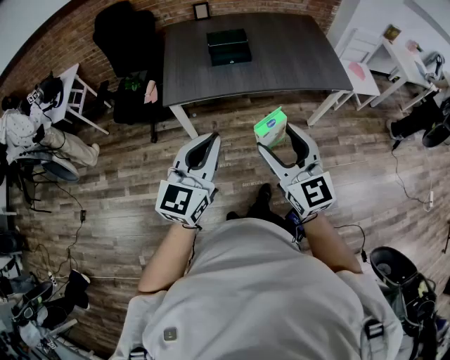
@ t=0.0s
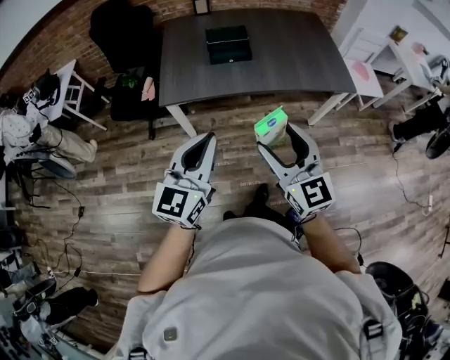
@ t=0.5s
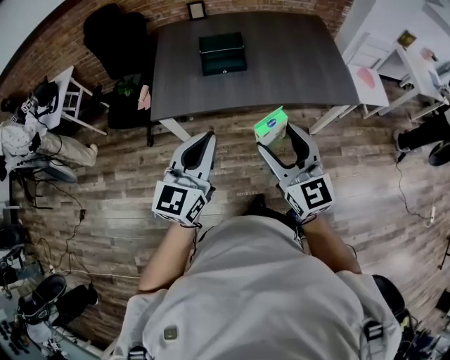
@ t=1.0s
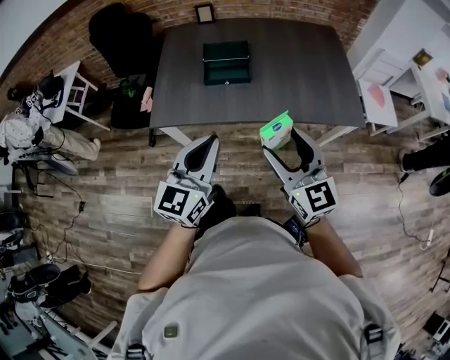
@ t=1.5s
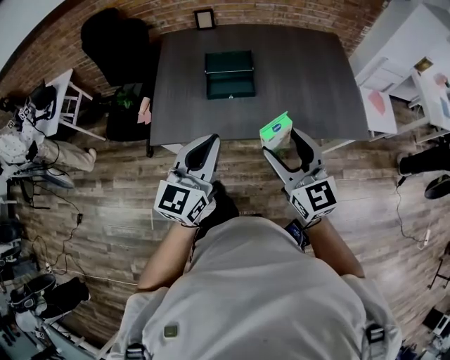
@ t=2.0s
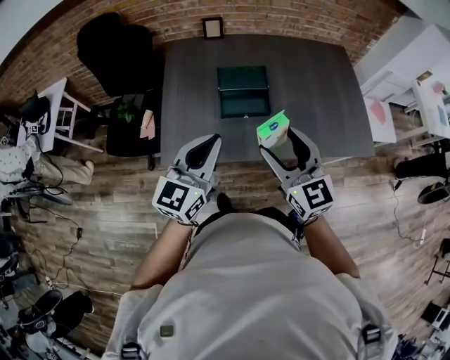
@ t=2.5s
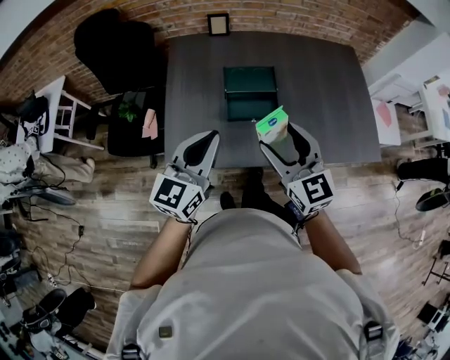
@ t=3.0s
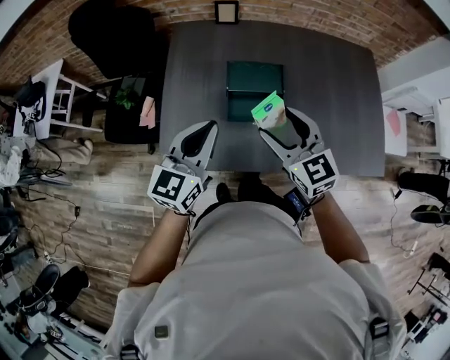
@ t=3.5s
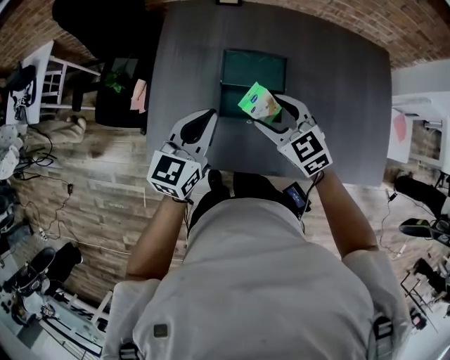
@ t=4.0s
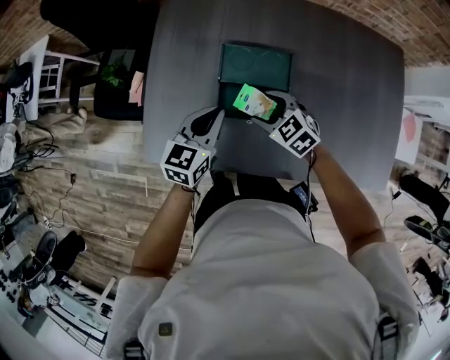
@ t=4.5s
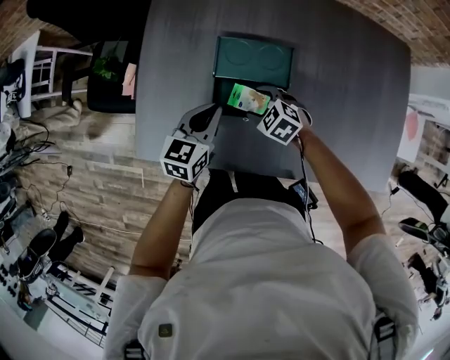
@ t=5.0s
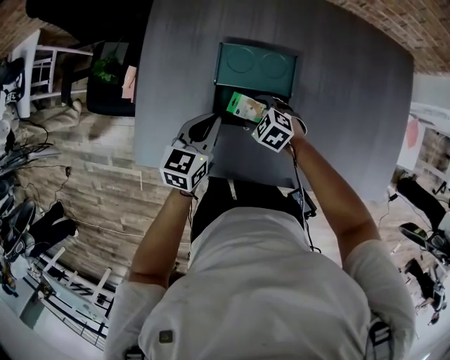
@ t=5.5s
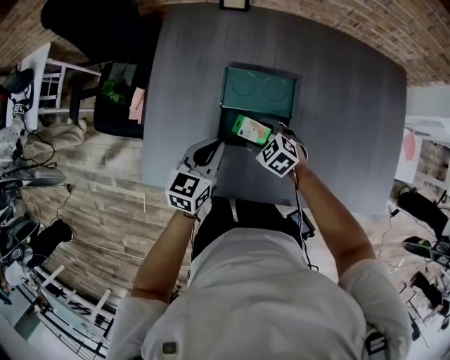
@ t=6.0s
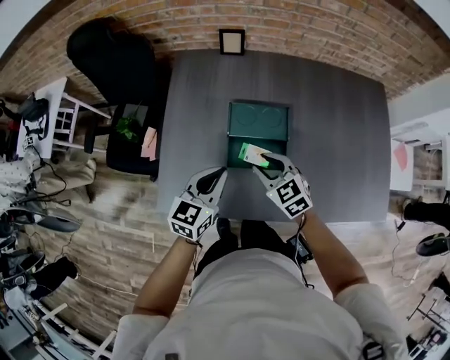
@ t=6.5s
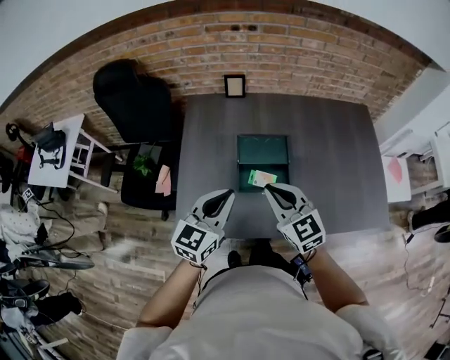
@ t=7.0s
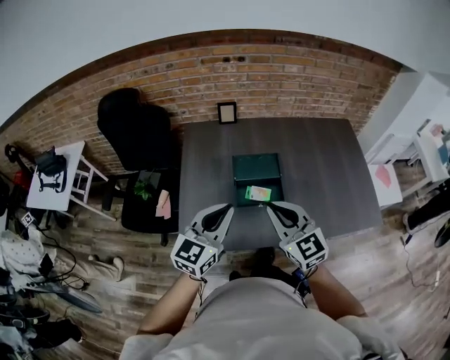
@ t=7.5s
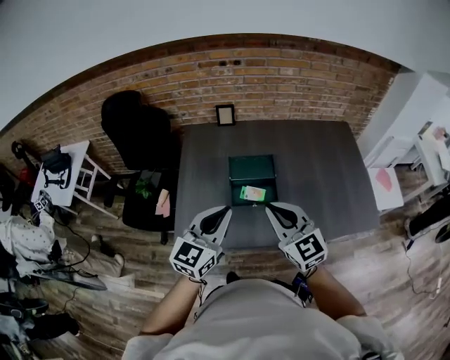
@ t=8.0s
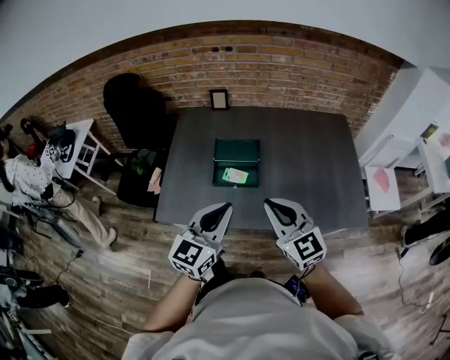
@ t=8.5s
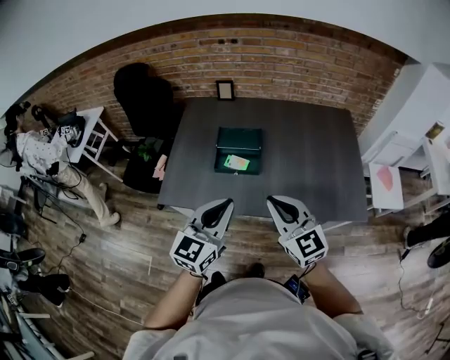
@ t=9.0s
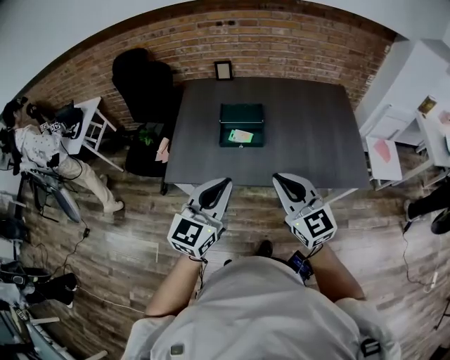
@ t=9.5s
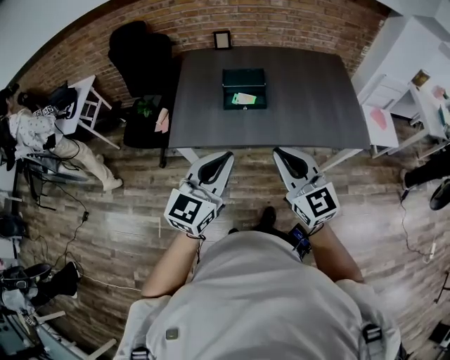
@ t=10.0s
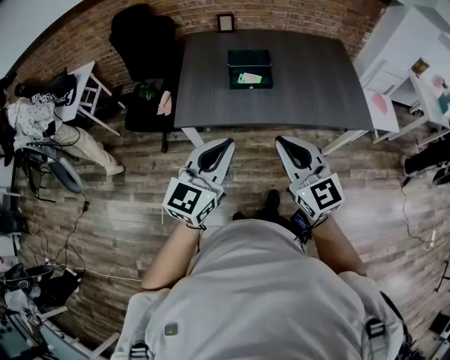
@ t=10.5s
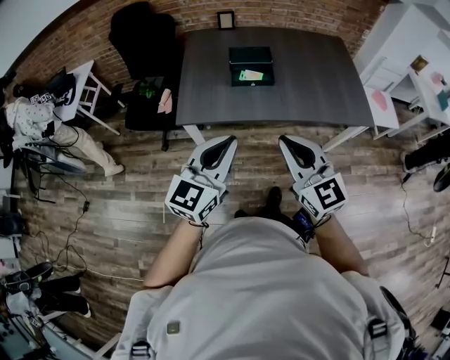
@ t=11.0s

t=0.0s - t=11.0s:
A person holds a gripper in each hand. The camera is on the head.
t=0.0s - t=2.0s: The two grippers go roughly 35 cm forward.
t=2.0s - t=3.5s: The right gripper travels forward by roughly 30 cm, while the left gripper travels forward and to the left by approximately 30 cm.
t=3.5s - t=5.5s: The left gripper moves downward and forward, about 25 cm, and swivels approximately 30 degrees. The right gripper goes about 35 cm downward, and angles its fingers downward, by some 40 degrees.
t=5.5s - t=7.5s: The two grippers go approximately 35 cm upward. The left gripper changes its angle by approximately 30 degrees, while the right gripper tilts its fingers approximately 50 degrees upward, and closes.
t=7.5s - t=9.0s: The two grippers go roughly 25 cm to the right and backward.
t=9.0s - t=11.0s: The two grippers go some 30 cm backward and to the left.

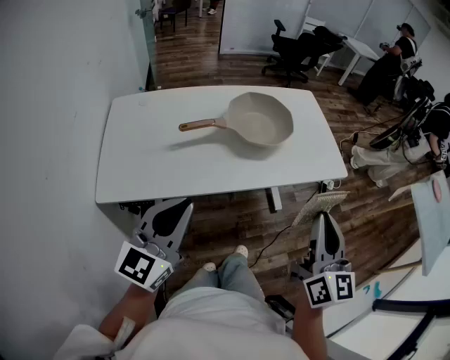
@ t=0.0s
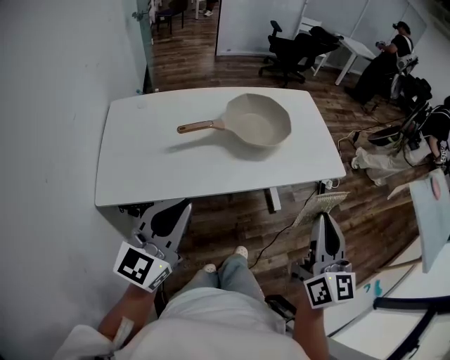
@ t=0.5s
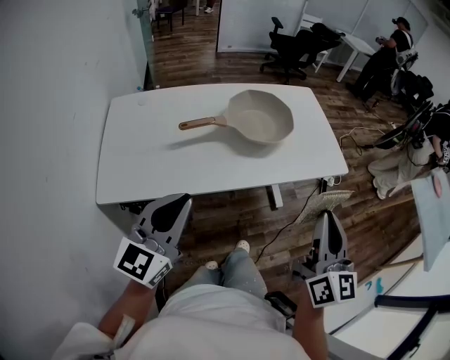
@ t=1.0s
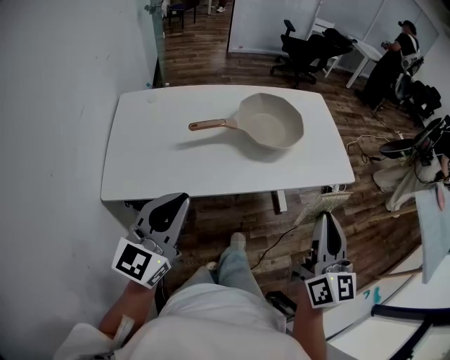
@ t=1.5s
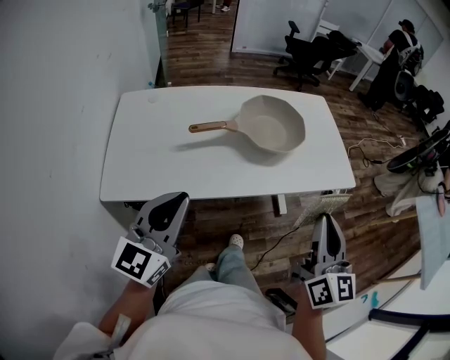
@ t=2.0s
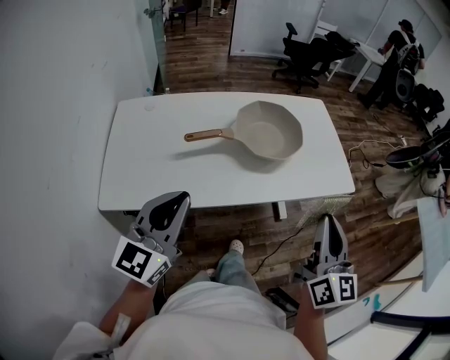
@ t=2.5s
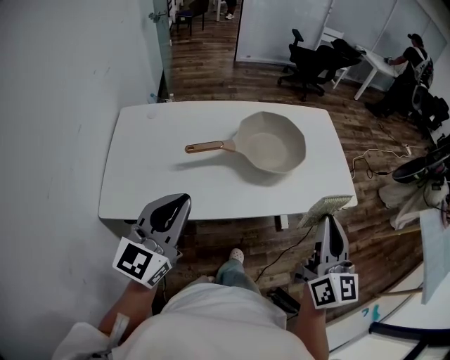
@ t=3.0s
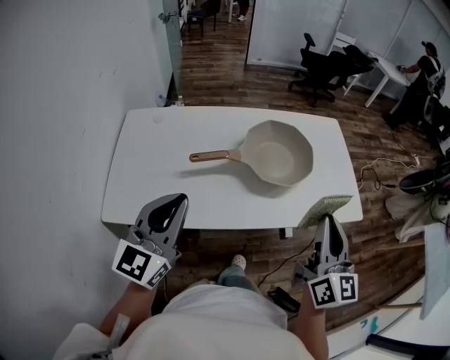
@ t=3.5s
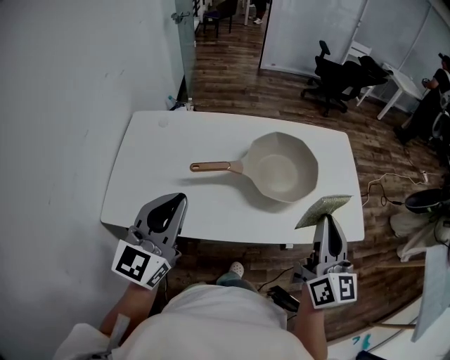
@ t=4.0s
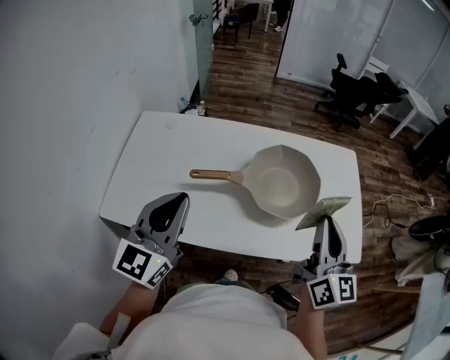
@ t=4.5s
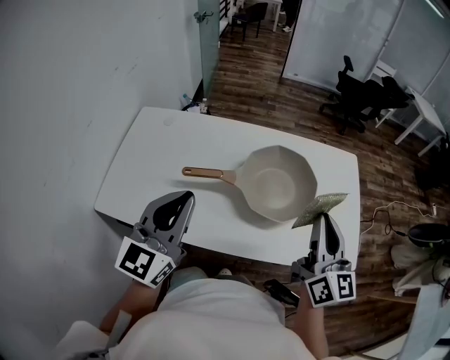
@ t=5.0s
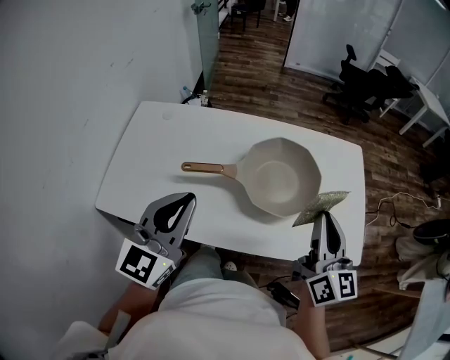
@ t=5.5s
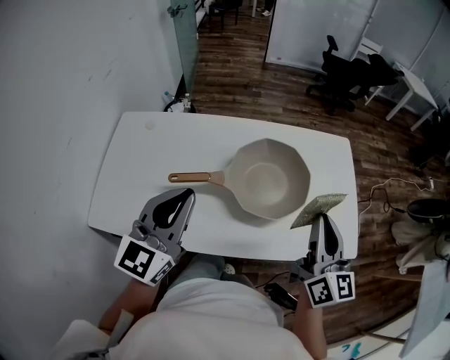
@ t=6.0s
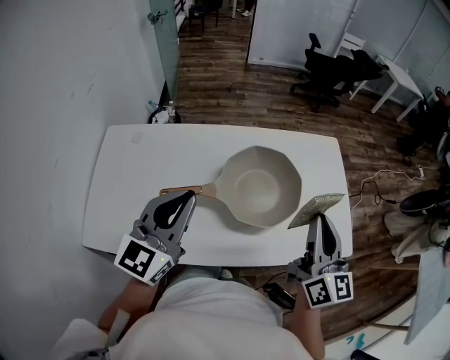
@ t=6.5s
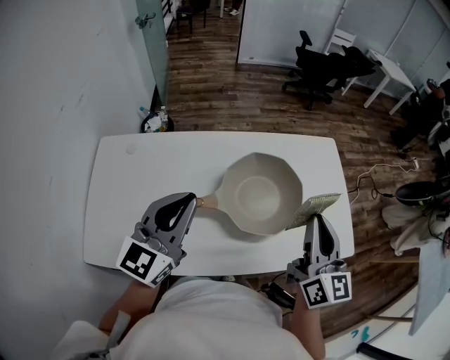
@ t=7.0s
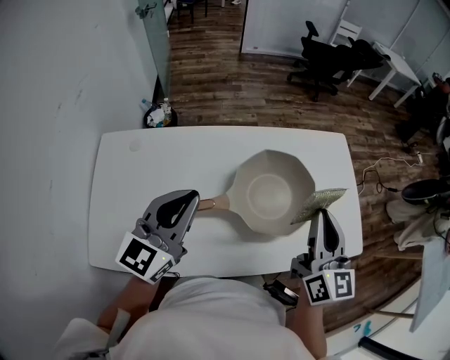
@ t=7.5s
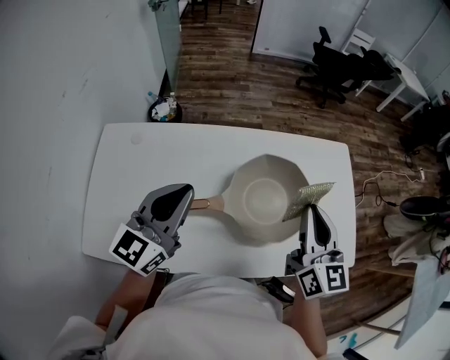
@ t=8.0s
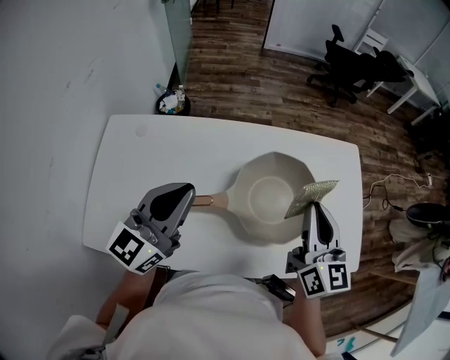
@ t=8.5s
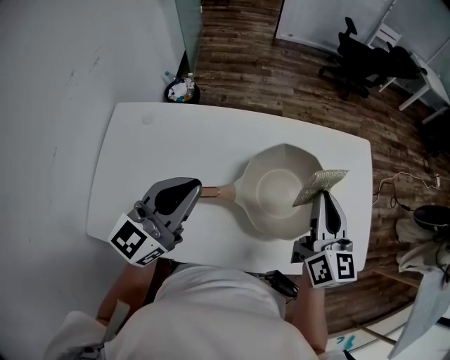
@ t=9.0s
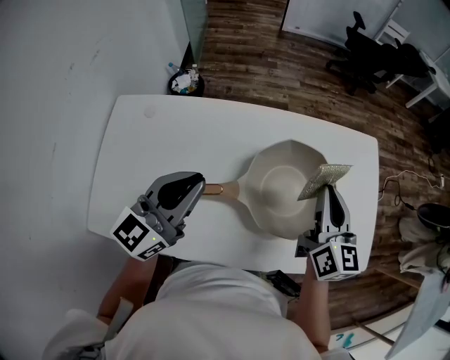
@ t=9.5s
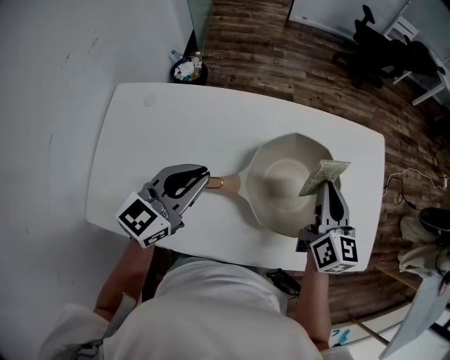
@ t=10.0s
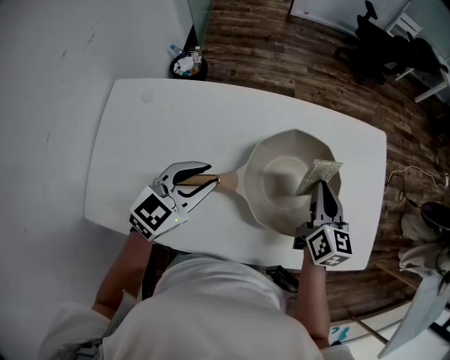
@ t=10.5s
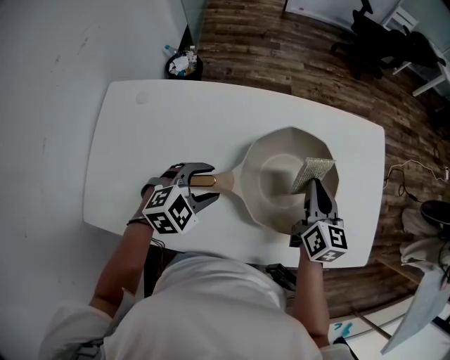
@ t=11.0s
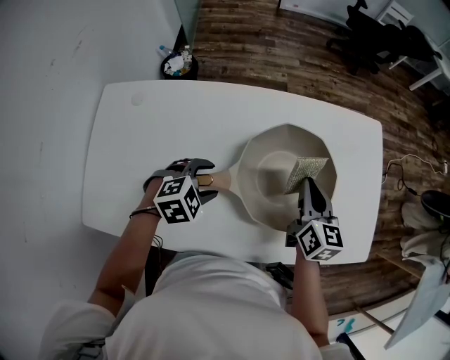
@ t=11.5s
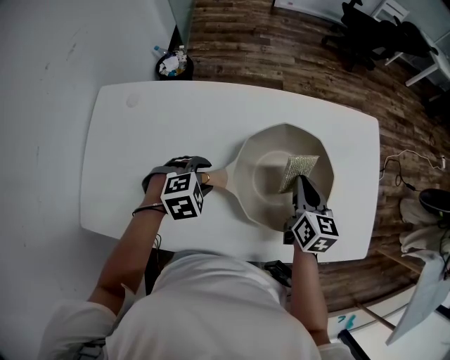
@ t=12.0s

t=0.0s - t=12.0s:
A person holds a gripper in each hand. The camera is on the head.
t=0.0s - t=2.0s: There are only small adjustments of the grippers.
t=2.0s - t=4.0s: Both grippers travel together forward, about 15 cm.
t=4.0s - t=6.0s: The grippers both shift forward and to the right by approximately 10 cm.
t=6.0s - t=8.0s: The grippers both shift forward and to the left by roughly 15 cm.
t=8.0s - t=10.0s: The right gripper shifts some 15 cm downward and forward. The left gripper is displaced downward by roughly 10 cm.
t=10.0s - t=12.0s: The left gripper is displaced downward by some 20 cm, tilts its fingers roughly 50 degrees downward, and opens up. The right gripper is displaced downward by about 10 cm.

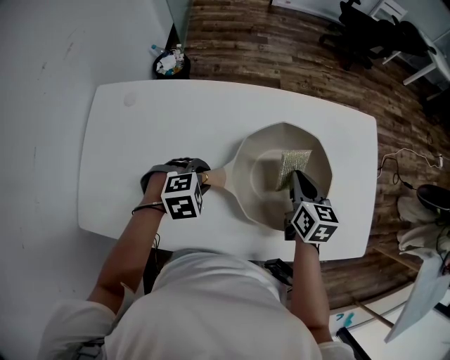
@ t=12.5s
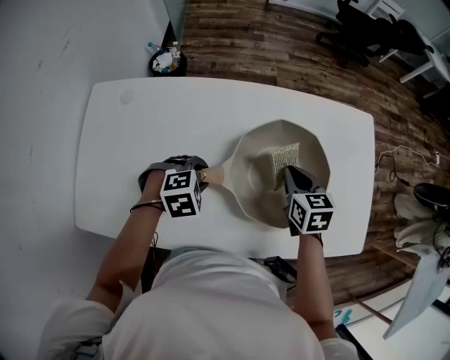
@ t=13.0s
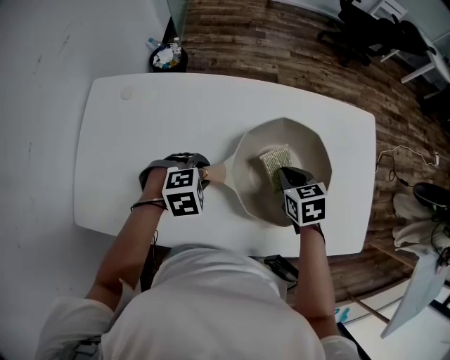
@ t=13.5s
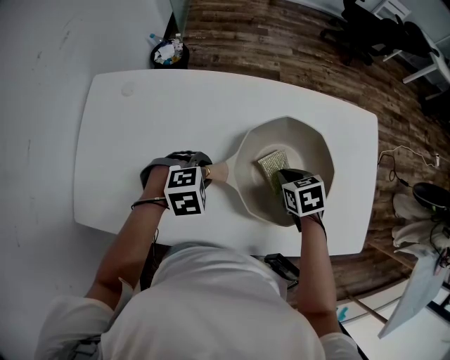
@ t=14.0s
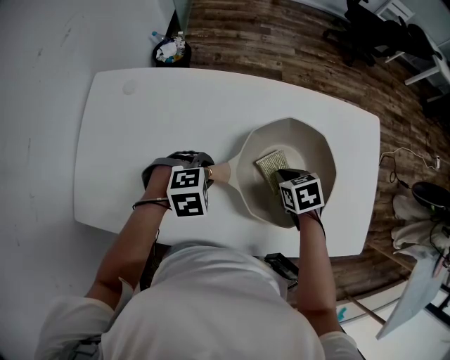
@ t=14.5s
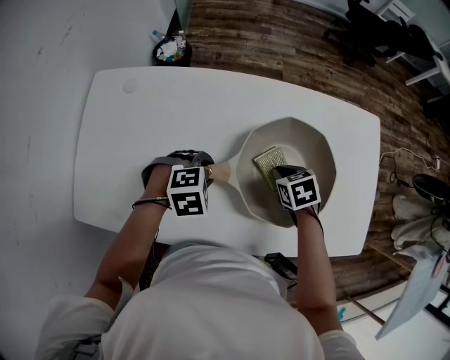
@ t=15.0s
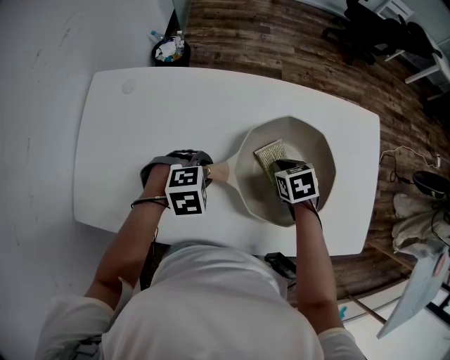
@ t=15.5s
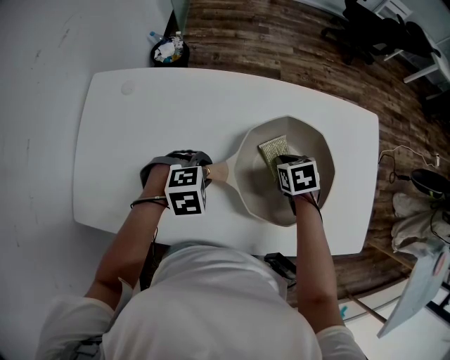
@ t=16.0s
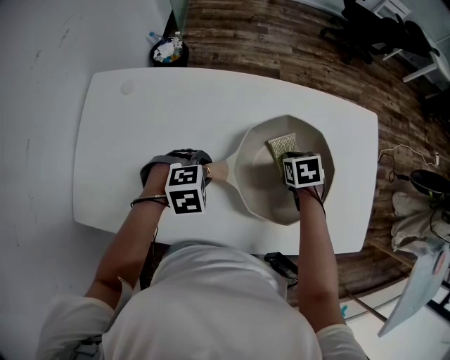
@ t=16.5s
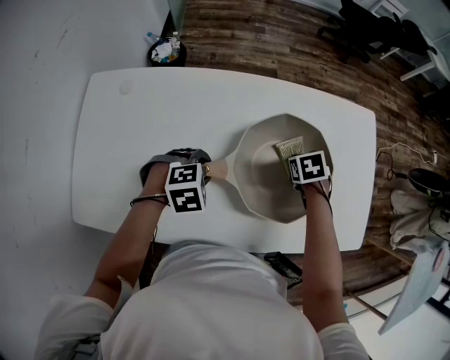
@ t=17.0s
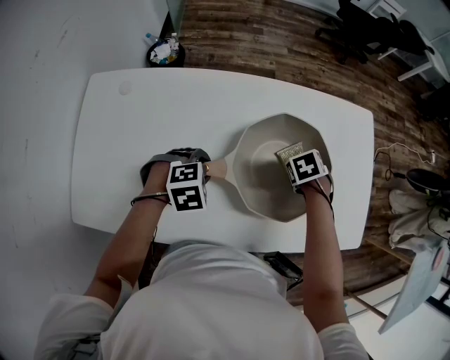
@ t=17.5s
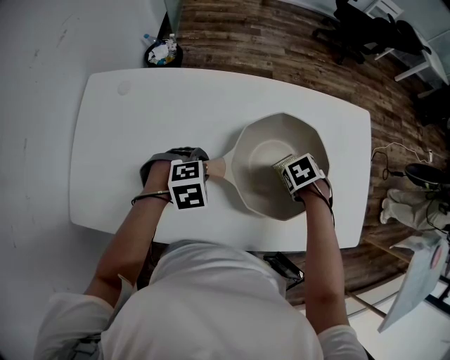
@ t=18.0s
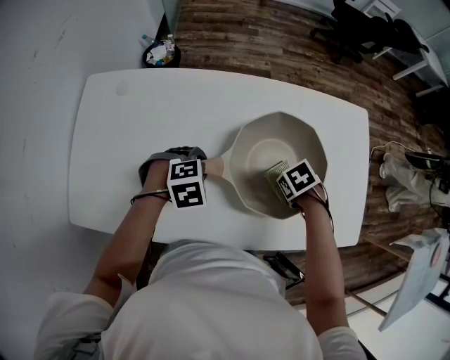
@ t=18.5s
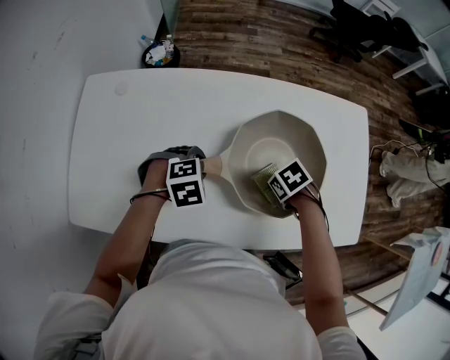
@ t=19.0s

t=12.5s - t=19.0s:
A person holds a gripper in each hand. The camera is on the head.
t=12.5s - t=14.5s: The right gripper moves downward, some 10 cm, and angles its fingers downward, by approximately 30 degrees.
t=14.5s - t=17.0s: The right gripper changes place by roughly 10 cm.
t=17.0s - t=19.0s: The right gripper ends up some 10 cm from where it was, and changes its angle by roughly 30 degrees.
